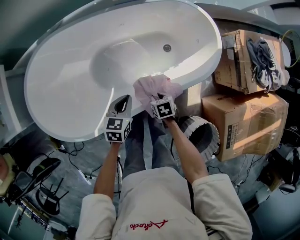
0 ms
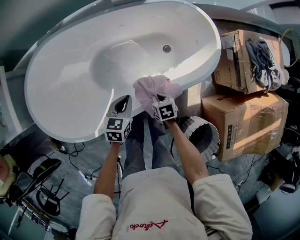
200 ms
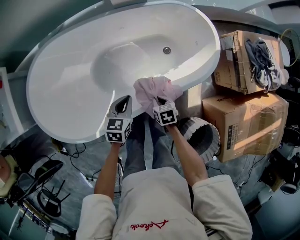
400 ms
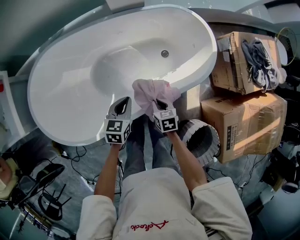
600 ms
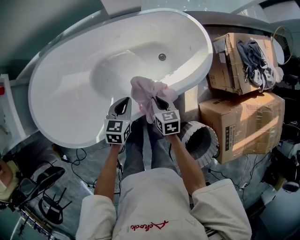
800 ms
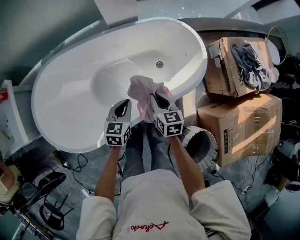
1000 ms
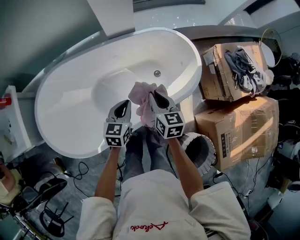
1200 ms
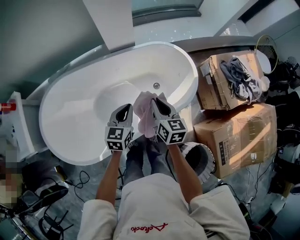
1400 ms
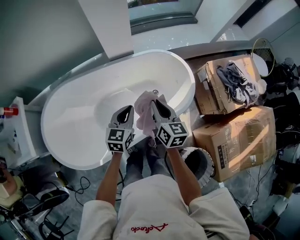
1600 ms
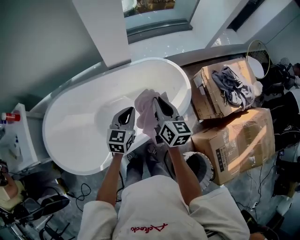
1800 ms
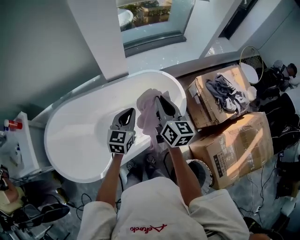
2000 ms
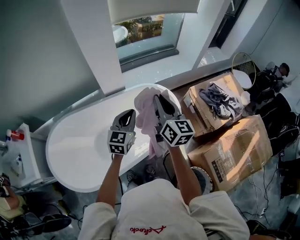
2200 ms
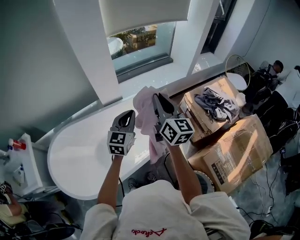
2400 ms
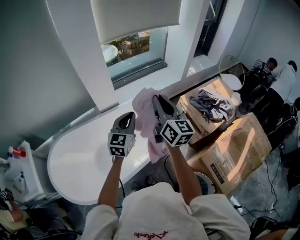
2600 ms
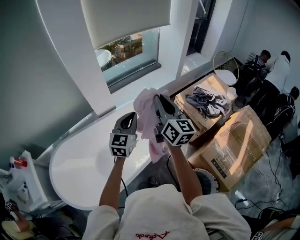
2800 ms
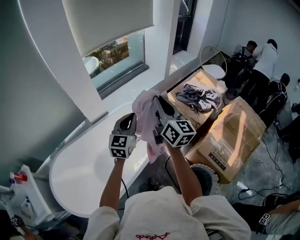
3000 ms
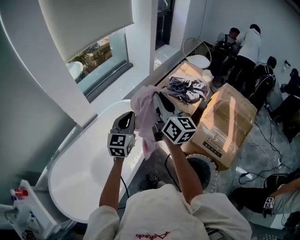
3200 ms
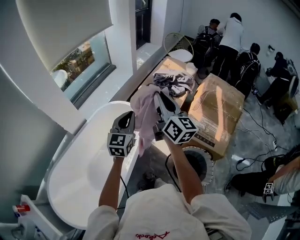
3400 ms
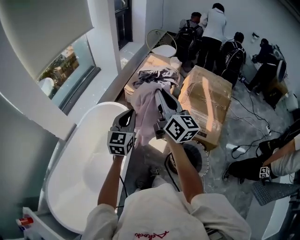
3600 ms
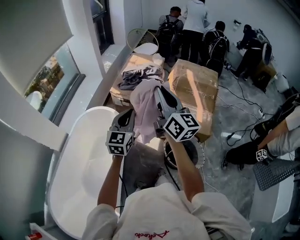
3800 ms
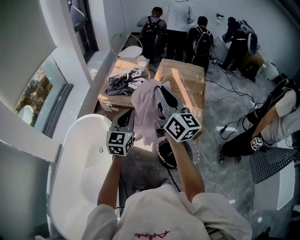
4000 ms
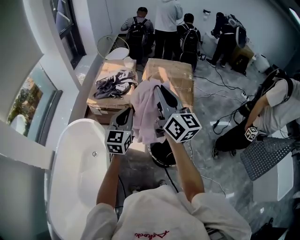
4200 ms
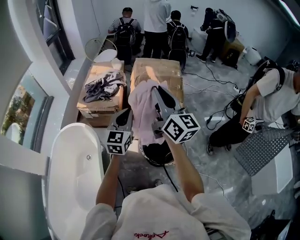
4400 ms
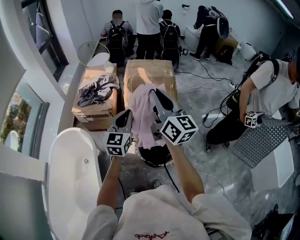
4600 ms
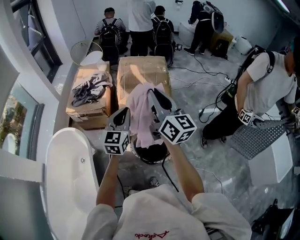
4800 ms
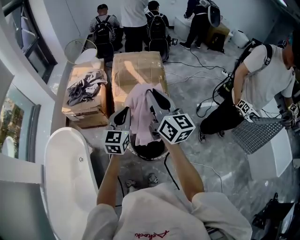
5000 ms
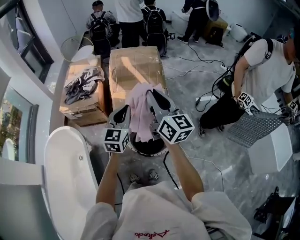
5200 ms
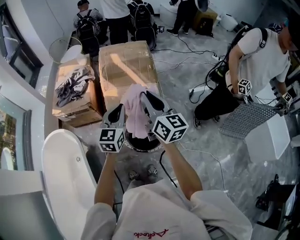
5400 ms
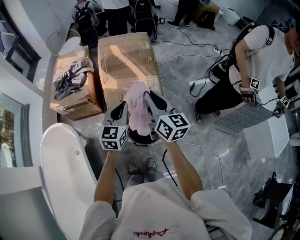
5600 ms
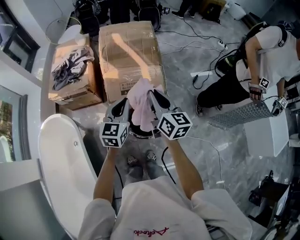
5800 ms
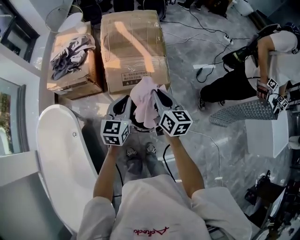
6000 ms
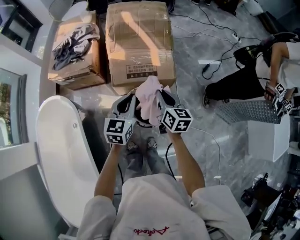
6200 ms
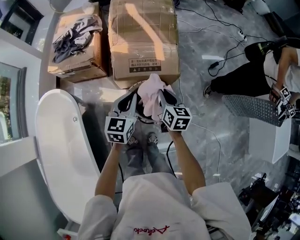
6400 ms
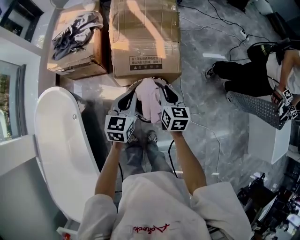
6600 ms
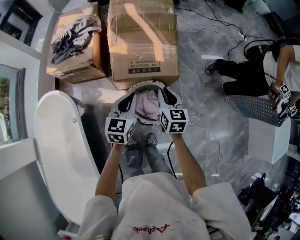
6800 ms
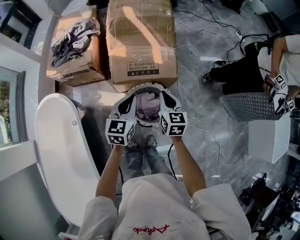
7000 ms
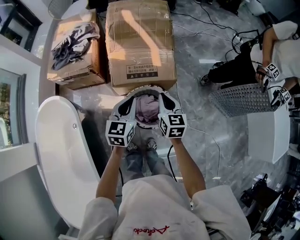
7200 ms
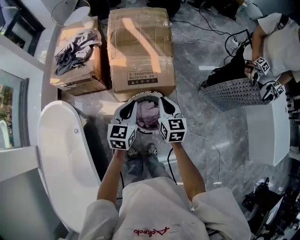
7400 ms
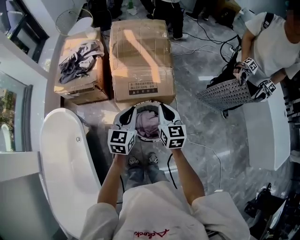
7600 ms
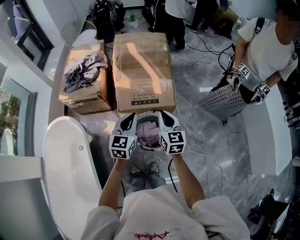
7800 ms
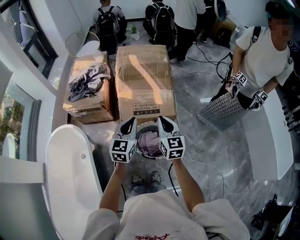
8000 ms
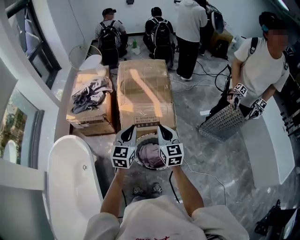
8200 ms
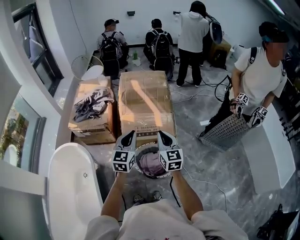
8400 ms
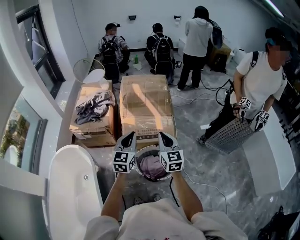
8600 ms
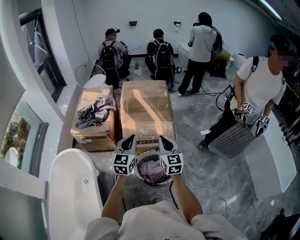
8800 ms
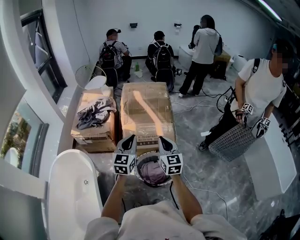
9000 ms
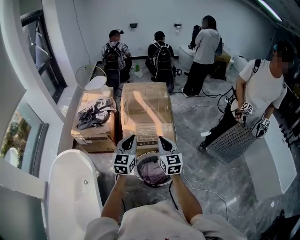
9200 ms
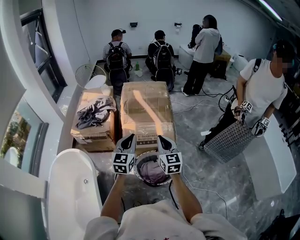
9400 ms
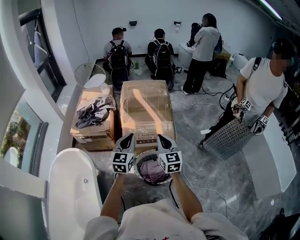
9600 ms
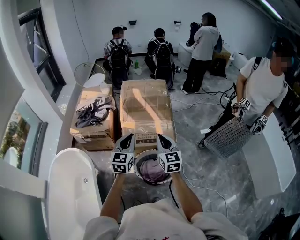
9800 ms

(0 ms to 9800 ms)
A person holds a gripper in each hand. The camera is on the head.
0 ms - 1400 ms: The right gripper goes roughly 30 cm upward, and tilts its fingers about 40 degrees upward; the left gripper is displaced upward and forward by about 20 cm.
1400 ms - 2800 ms: The right gripper is displaced upward by roughly 35 cm, and angles its fingers upward, by approximately 30 degrees. The left gripper heads upward and to the right, covering some 30 cm, and rotates some 30 degrees.
2800 ms - 4200 ms: Both grippers are carried approximately 40 cm. The right gripper swivels about 50 degrees, while the left gripper changes its angle by about 50 degrees.
4200 ms - 5600 ms: The left gripper travels to the right by approximately 20 cm. Meanwhile the right gripper is displaced to the right and downward by roughly 25 cm, and rotates about 20 degrees.
5600 ms - 7000 ms: The left gripper shifts approximately 15 cm downward; the right gripper travels downward by roughly 25 cm, and swivels approximately 30 degrees.
7000 ms - 8400 ms: The grippers both shift upward by approximately 15 cm. The right gripper rotates roughly 20 degrees.
8400 ms - 9800 ms: There are only small adjustments of the grippers.

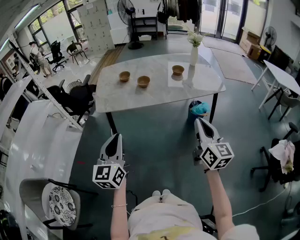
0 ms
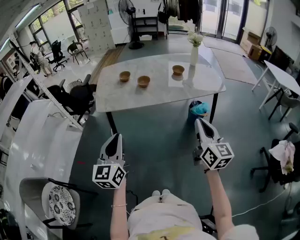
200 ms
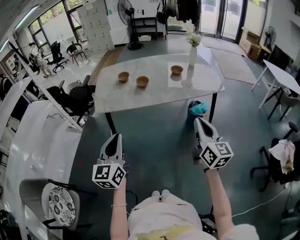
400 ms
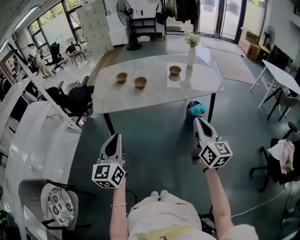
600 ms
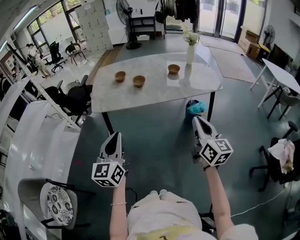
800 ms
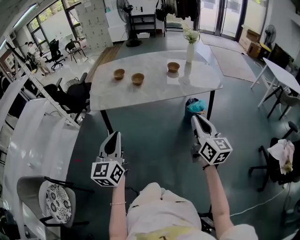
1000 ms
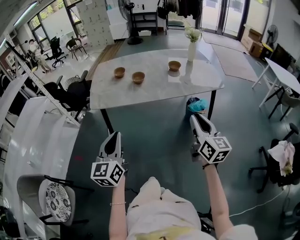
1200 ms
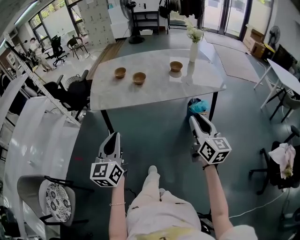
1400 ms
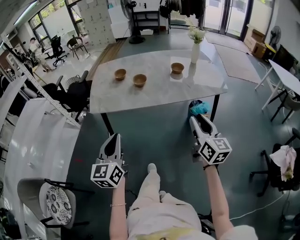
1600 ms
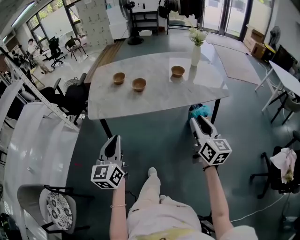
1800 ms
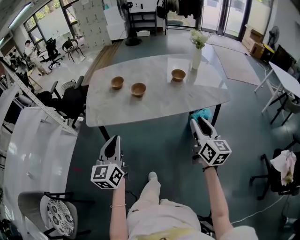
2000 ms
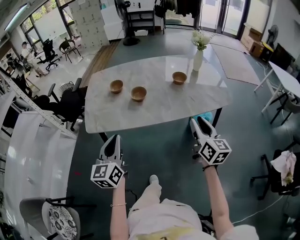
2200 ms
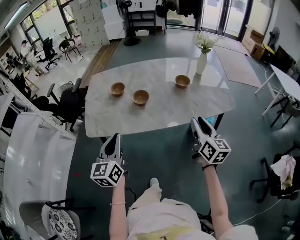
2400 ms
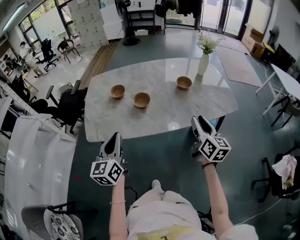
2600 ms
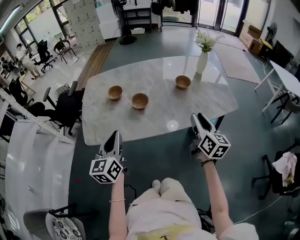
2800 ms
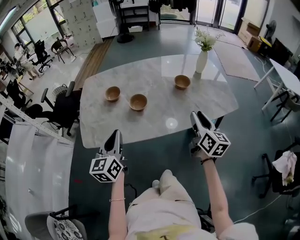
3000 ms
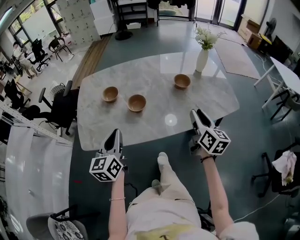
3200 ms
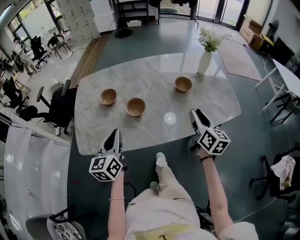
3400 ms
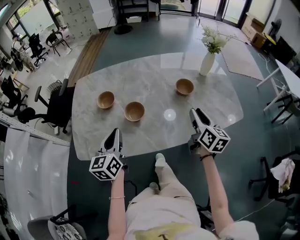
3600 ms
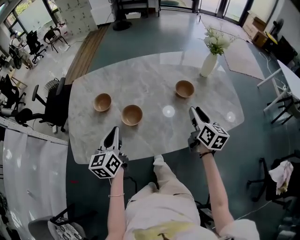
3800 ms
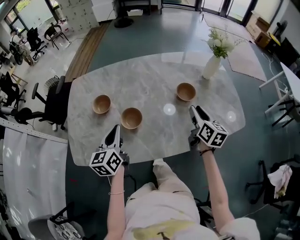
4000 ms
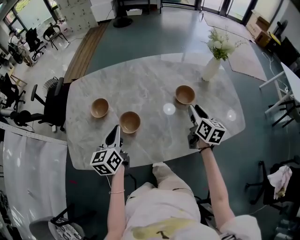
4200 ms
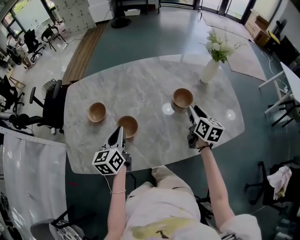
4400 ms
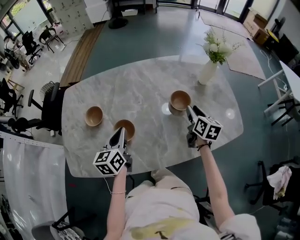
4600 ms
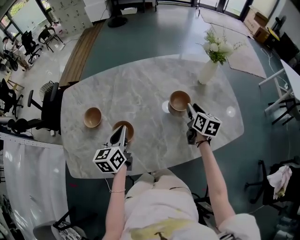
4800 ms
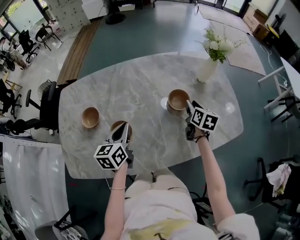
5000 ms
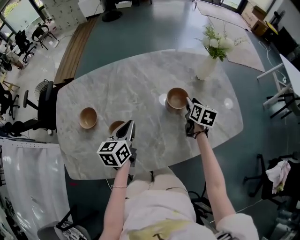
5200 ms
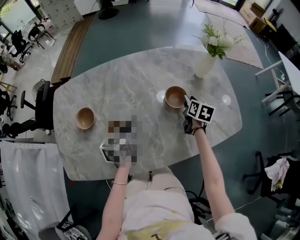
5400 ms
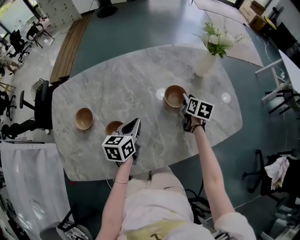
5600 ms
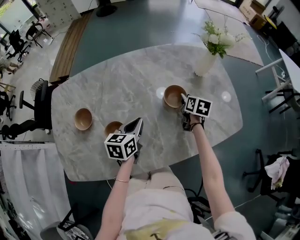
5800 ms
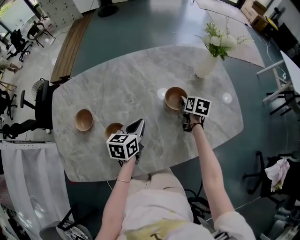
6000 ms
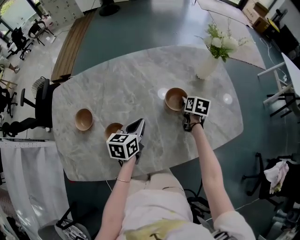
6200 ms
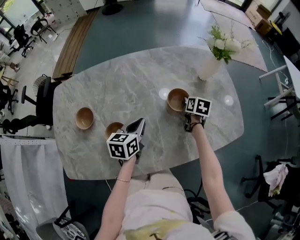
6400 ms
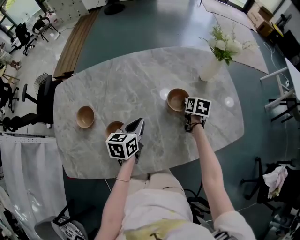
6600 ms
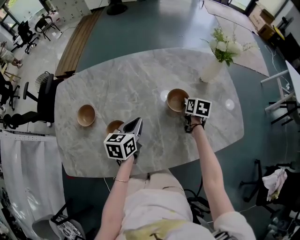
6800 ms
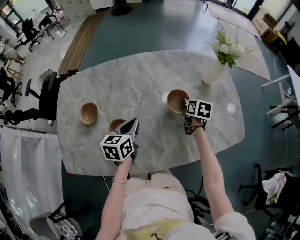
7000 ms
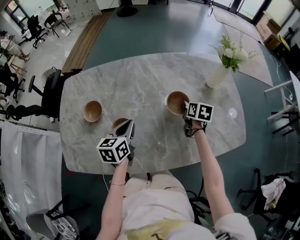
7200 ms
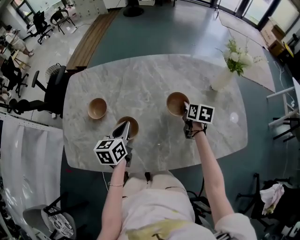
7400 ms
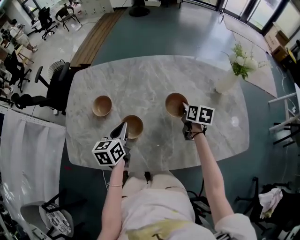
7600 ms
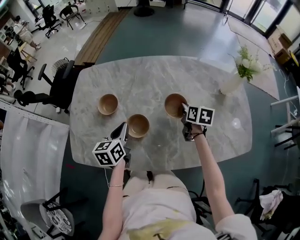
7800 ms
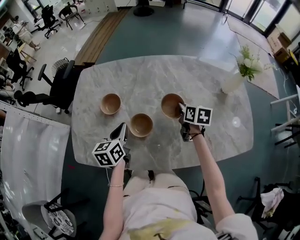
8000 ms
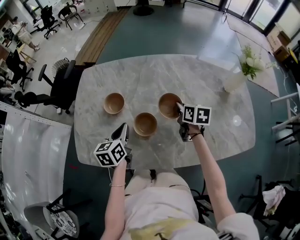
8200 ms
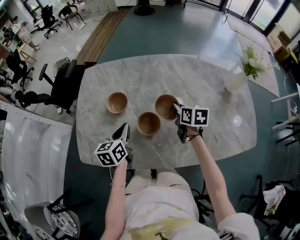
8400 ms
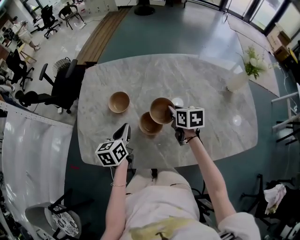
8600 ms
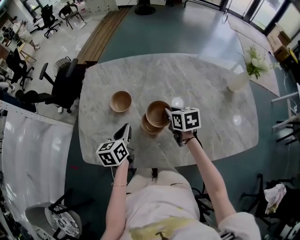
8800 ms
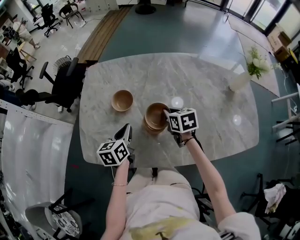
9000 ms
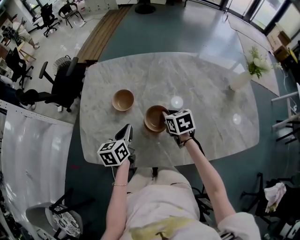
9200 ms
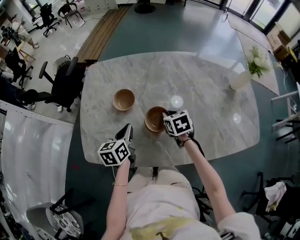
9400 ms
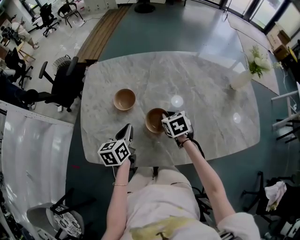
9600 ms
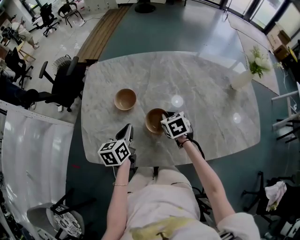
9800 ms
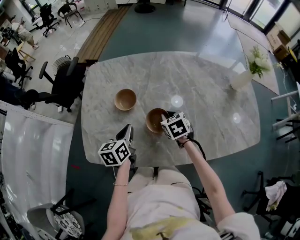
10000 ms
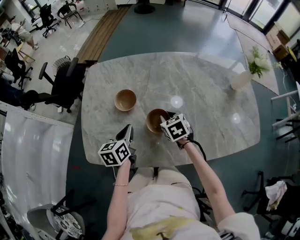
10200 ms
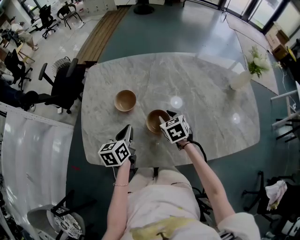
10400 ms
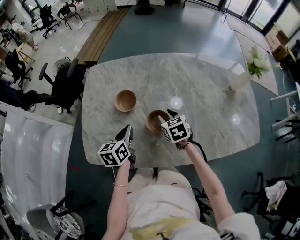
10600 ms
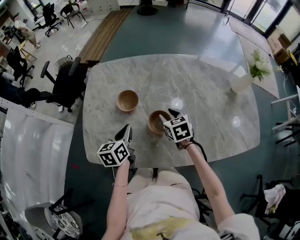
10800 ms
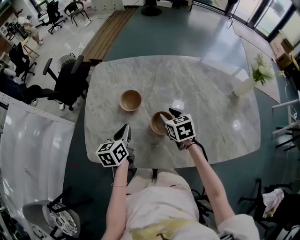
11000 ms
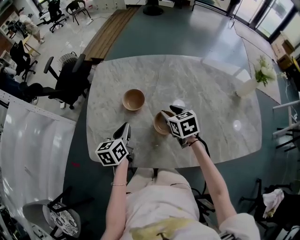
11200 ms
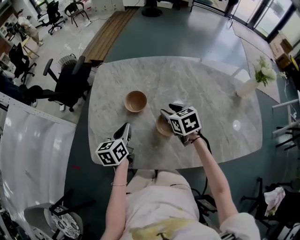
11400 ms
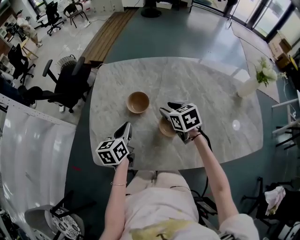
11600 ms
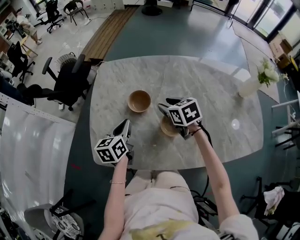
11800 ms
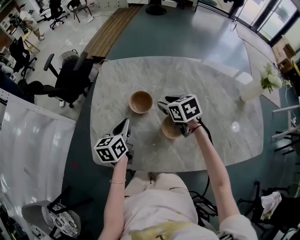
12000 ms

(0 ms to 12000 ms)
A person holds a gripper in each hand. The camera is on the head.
0 ms - 1600 ms: Both grippers move forward, some 5 cm. The right gripper opens its fingers.
1600 ms - 3000 ms: Both grippers move forward, roughly 30 cm.
3000 ms - 4400 ms: The grippers both shift forward by some 25 cm.
4400 ms - 6000 ms: The right gripper moves downward and forward, some 15 cm, and rotates approximately 20 degrees. The left gripper is displaced to the right, forward and downward by about 20 cm, and turns by approximately 30 degrees.
6000 ms - 7600 ms: The left gripper is displaced to the left and backward by about 15 cm, and swivels some 20 degrees. The right gripper goes about 10 cm to the left, and closes its fingers.
7600 ms - 9000 ms: The left gripper shifts about 10 cm to the left. Meanwhile the right gripper moves to the left, roughly 20 cm, and changes its angle by about 30 degrees.
9000 ms - 10400 ms: The right gripper opens.
10400 ms - 12000 ms: The right gripper travels forward, to the left and upward by roughly 15 cm, while the left gripper shifts approximately 5 cm to the left.

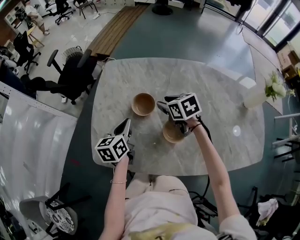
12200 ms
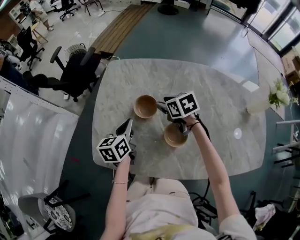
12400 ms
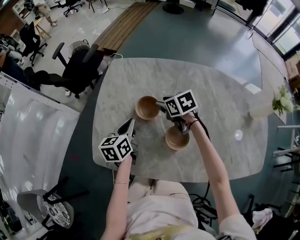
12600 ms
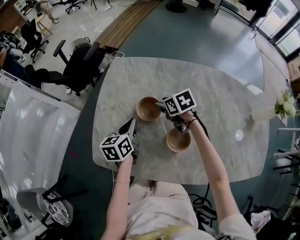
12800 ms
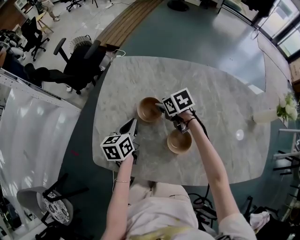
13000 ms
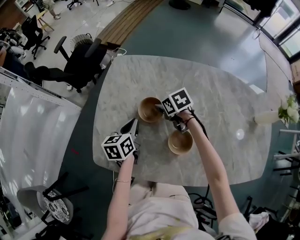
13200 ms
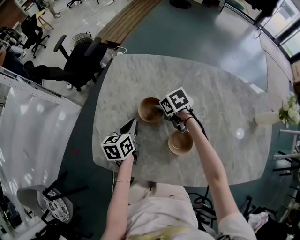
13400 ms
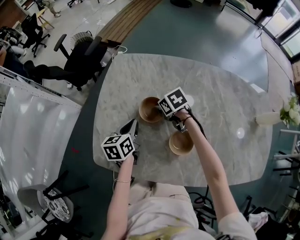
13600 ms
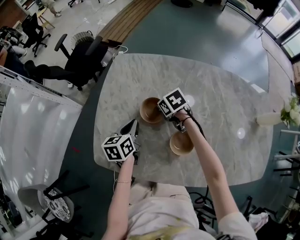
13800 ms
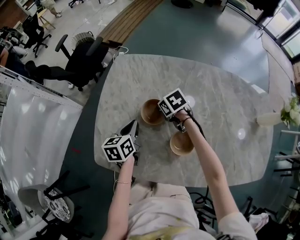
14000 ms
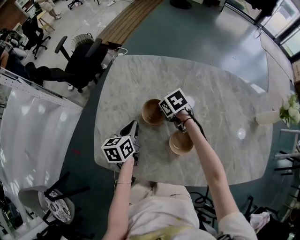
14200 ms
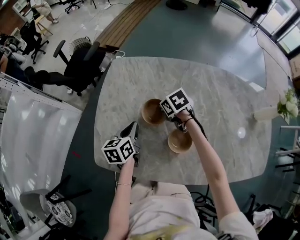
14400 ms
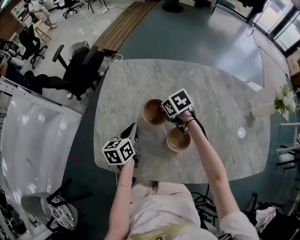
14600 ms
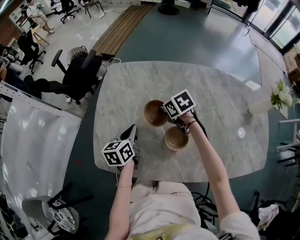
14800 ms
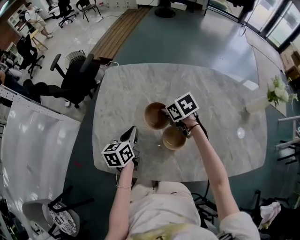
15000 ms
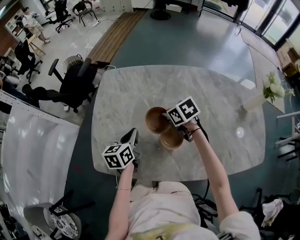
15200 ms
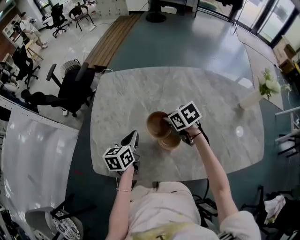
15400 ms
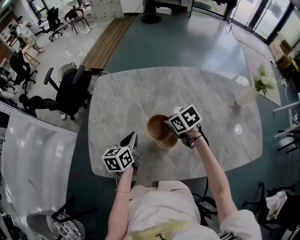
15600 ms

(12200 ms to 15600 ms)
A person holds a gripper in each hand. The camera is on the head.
12200 ms - 13800 ms: The left gripper travels downward by some 5 cm. The right gripper travels downward and forward by roughly 10 cm, swivels roughly 20 degrees, and closes its fingers.
13800 ms - 15600 ms: The right gripper is displaced backward, upward and to the right by about 15 cm; the left gripper goes about 5 cm backward.
